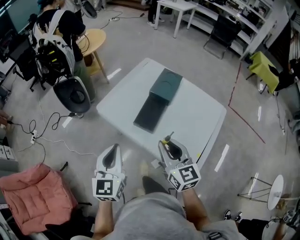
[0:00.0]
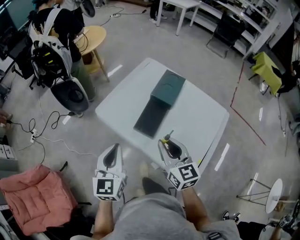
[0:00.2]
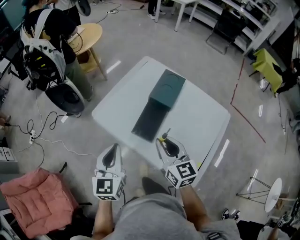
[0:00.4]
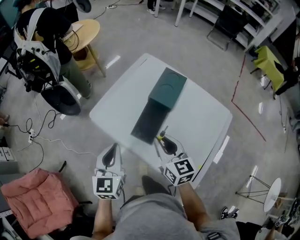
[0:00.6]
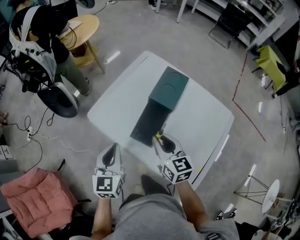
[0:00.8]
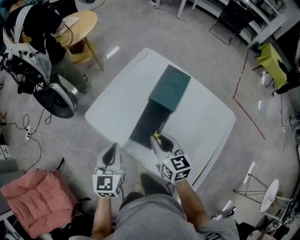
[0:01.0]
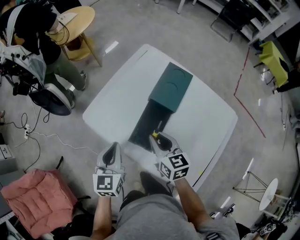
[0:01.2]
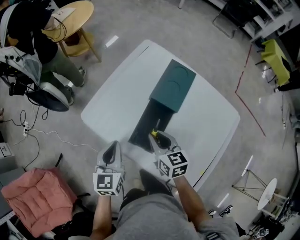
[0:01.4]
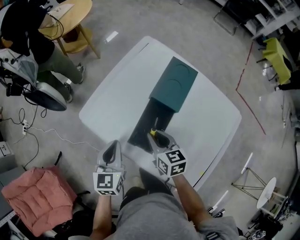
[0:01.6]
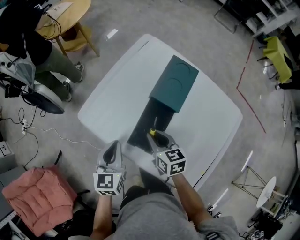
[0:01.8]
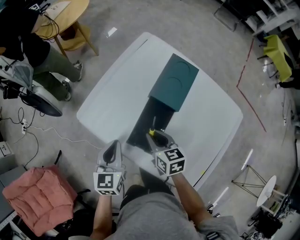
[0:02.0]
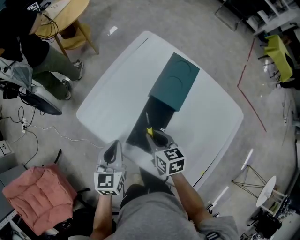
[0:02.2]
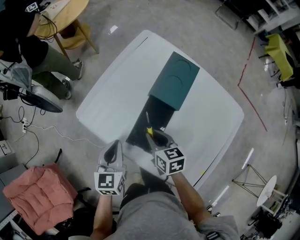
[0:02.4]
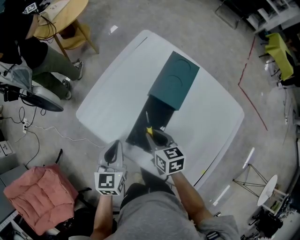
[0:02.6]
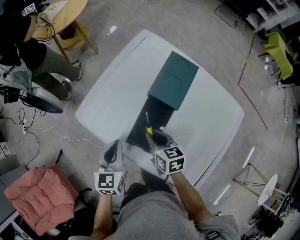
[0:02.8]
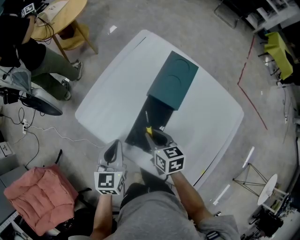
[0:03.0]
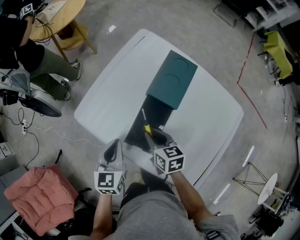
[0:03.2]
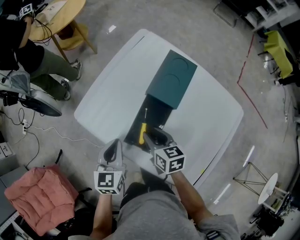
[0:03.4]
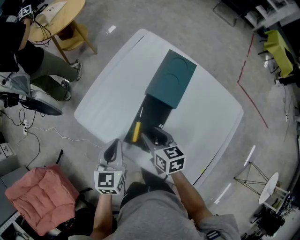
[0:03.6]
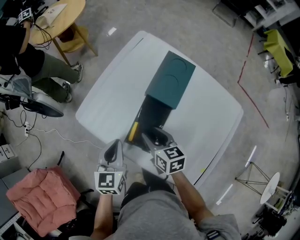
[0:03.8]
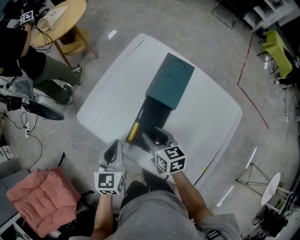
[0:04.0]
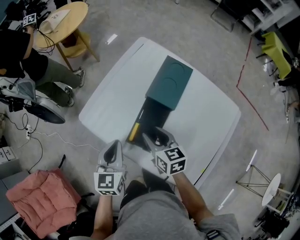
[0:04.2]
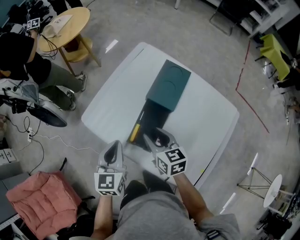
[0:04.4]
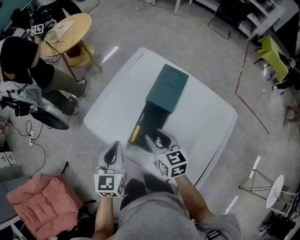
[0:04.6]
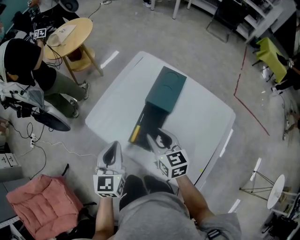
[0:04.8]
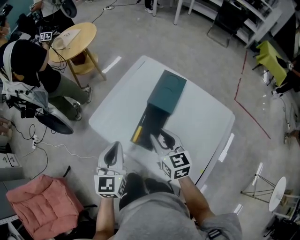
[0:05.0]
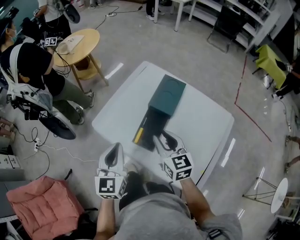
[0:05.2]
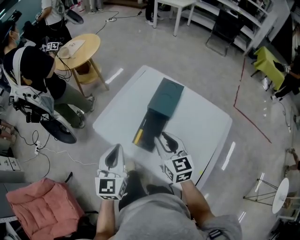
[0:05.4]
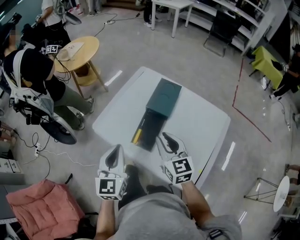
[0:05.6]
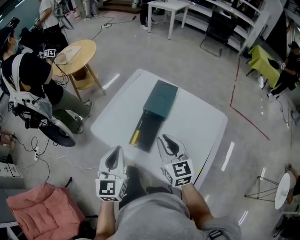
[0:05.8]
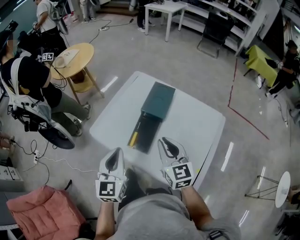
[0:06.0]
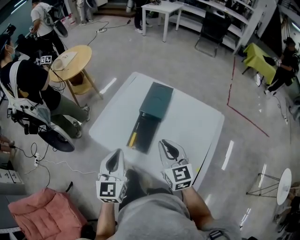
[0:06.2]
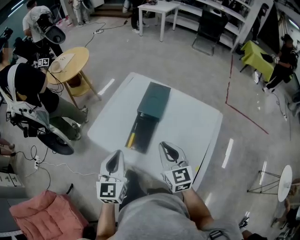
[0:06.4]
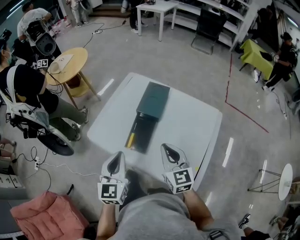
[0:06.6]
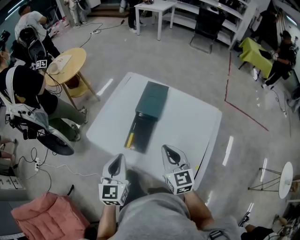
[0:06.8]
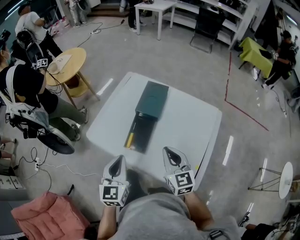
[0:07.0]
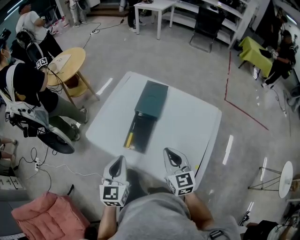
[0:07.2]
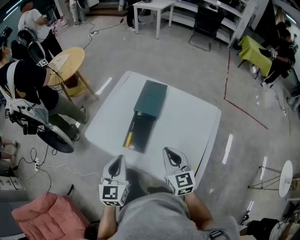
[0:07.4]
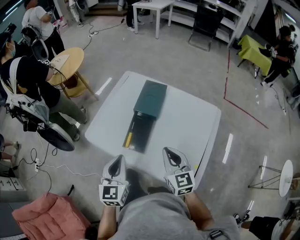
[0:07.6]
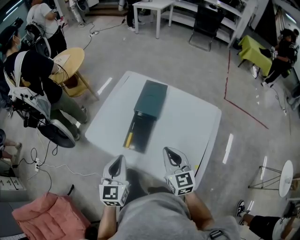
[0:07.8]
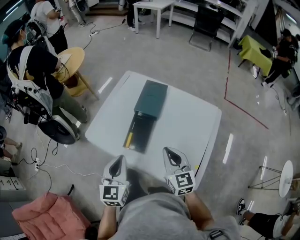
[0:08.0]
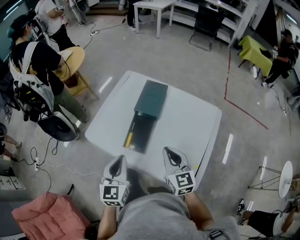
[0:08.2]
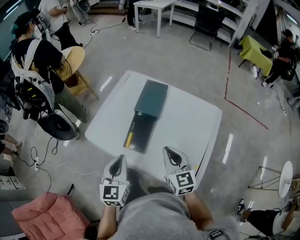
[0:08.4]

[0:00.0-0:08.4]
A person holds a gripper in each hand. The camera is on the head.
0:00.0 to 0:01.4: The grippers both shift forward and downward by roughly 25 cm. The right gripper turns by about 20 degrees.
0:01.4 to 0:02.8: The right gripper travels downward by roughly 5 cm.
0:02.8 to 0:04.2: The right gripper opens its fingers.
0:04.2 to 0:05.6: The grippers both shift upward and backward by some 15 cm. The right gripper turns by roughly 30 degrees, and closes its fingers.
0:05.6 to 0:07.0: The left gripper changes place by about 5 cm, while the right gripper goes roughly 10 cm backward and to the right, and closes.
0:07.0 to 0:08.4: The grippers move only a little.

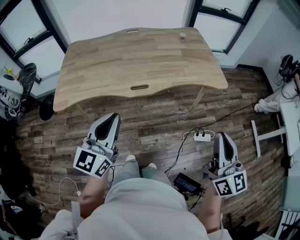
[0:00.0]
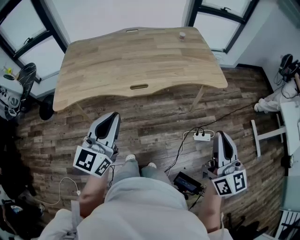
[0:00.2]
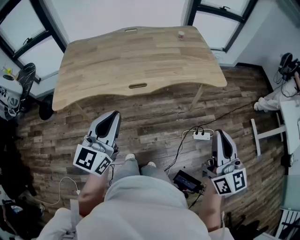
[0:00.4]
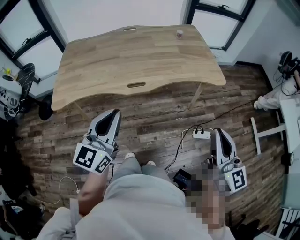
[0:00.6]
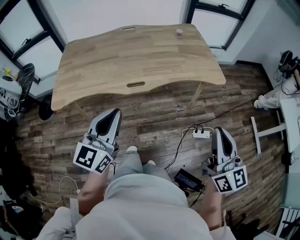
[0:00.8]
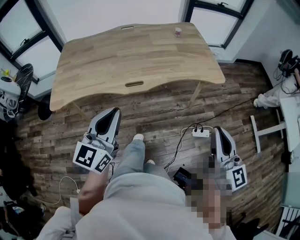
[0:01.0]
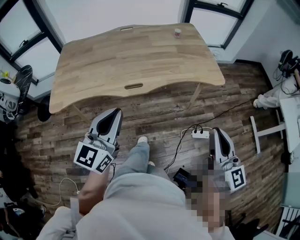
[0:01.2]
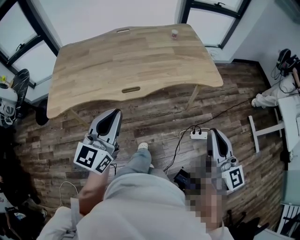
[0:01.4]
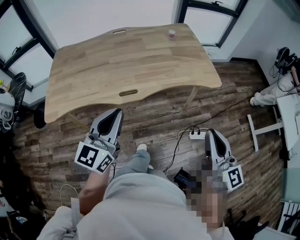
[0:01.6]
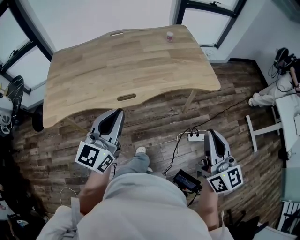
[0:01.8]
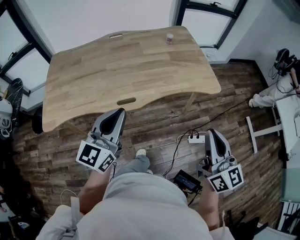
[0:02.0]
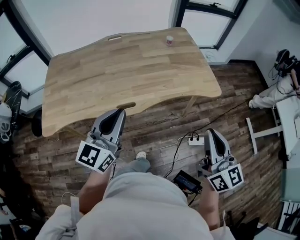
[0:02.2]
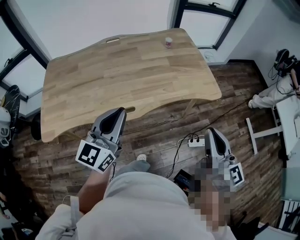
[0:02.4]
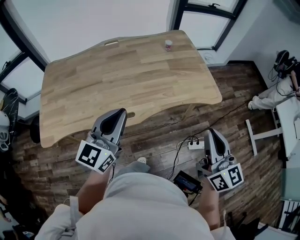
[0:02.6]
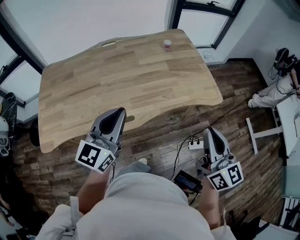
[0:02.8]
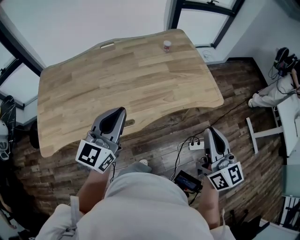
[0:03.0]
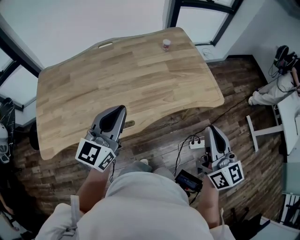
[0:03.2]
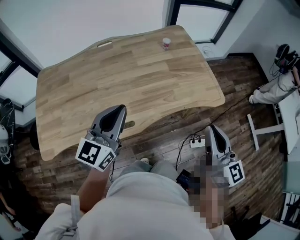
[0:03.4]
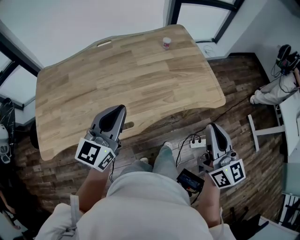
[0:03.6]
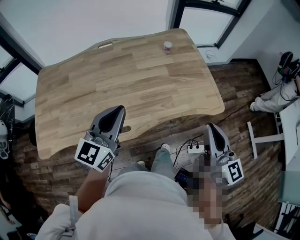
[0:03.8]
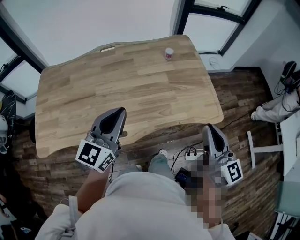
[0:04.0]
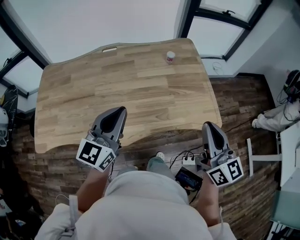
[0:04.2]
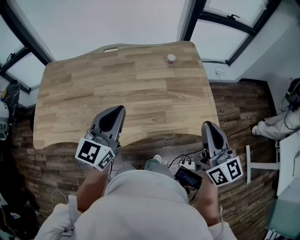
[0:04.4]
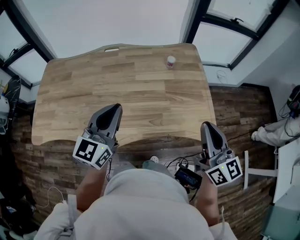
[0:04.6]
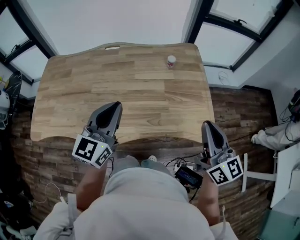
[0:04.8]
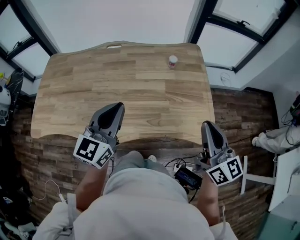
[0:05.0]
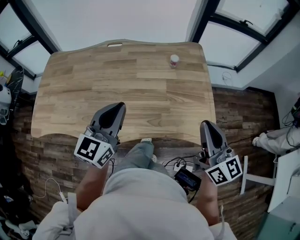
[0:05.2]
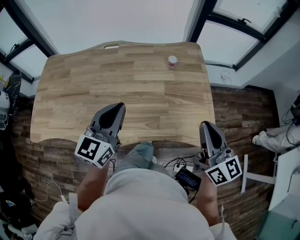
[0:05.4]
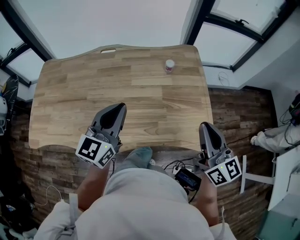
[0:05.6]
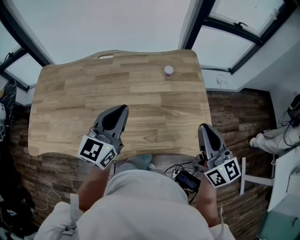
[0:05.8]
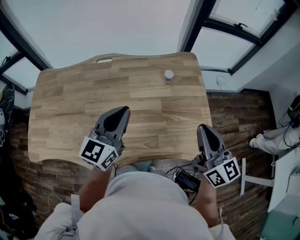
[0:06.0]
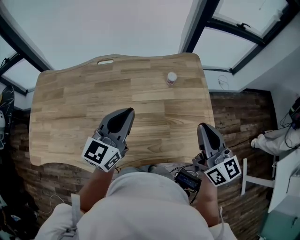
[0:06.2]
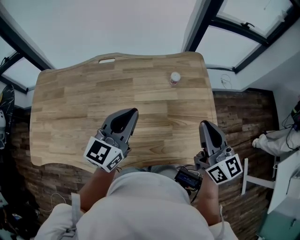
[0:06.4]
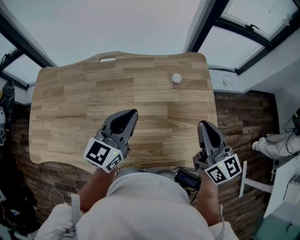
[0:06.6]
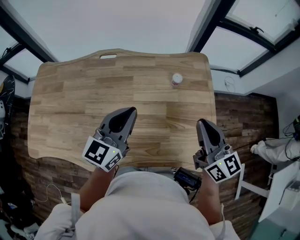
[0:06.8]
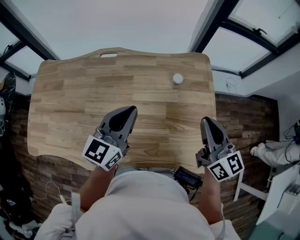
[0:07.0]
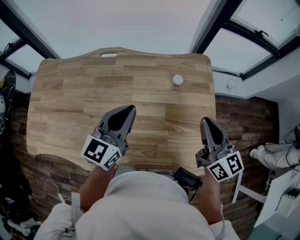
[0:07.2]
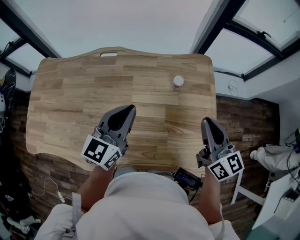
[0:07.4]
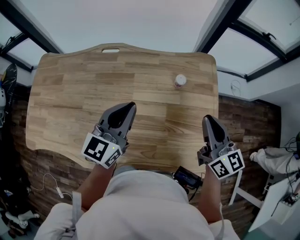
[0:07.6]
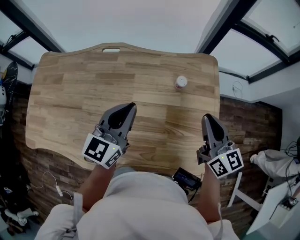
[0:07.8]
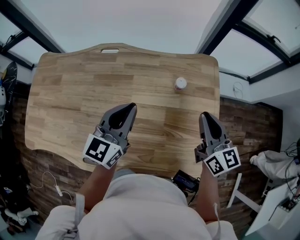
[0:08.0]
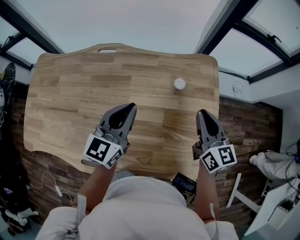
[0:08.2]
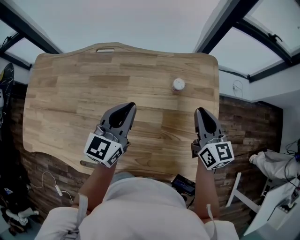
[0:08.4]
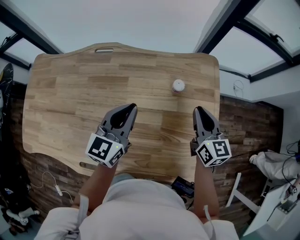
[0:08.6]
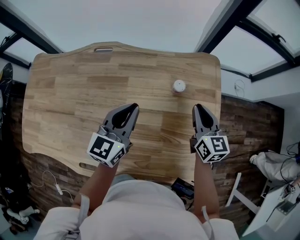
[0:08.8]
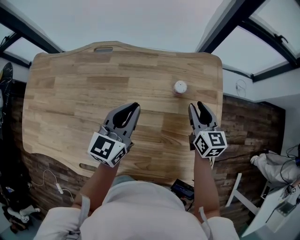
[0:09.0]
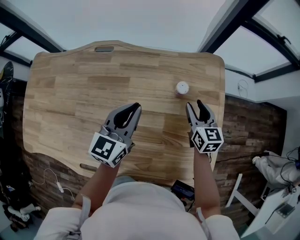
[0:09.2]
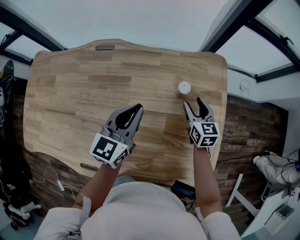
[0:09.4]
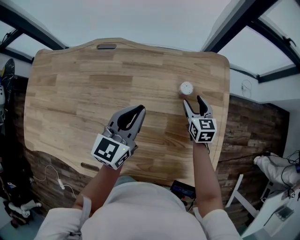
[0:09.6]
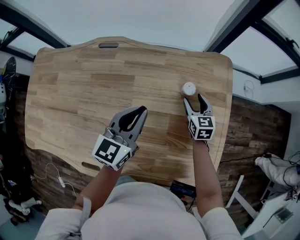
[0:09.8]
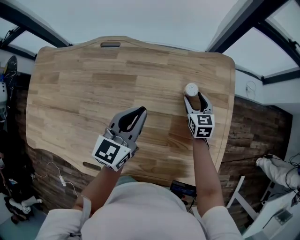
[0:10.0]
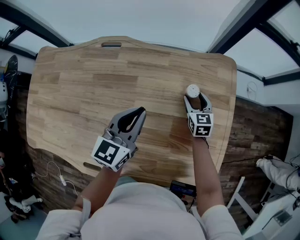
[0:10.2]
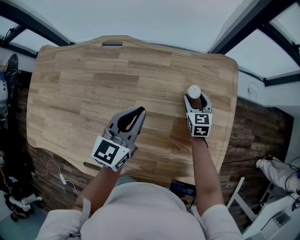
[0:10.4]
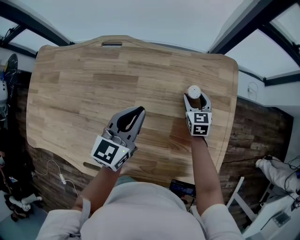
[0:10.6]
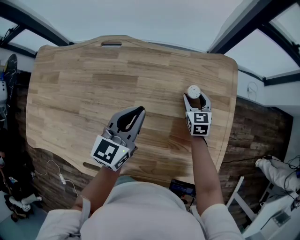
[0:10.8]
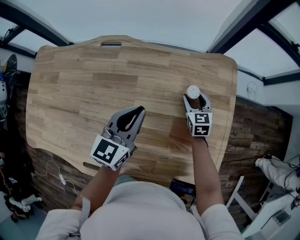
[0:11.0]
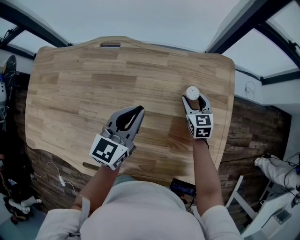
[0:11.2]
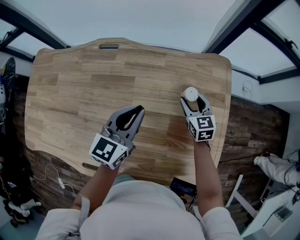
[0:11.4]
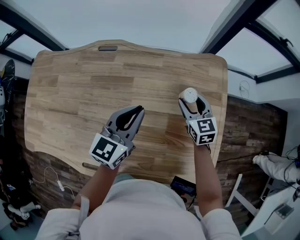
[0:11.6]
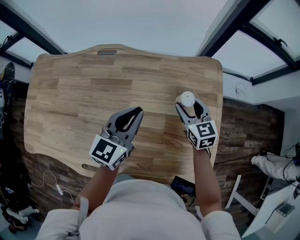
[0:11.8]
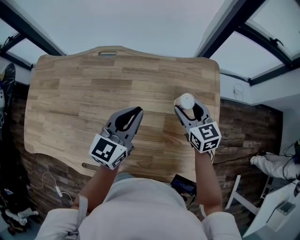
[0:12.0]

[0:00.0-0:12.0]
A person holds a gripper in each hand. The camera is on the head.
0:00.0 to 0:01.6: Both grippers move forward, roughly 5 cm.
0:01.6 to 0:03.0: Both grippers travel together forward, some 20 cm.
0:03.0 to 0:04.4: Both grippers travel together forward and to the right, about 15 cm.
0:04.4 to 0:06.0: The two grippers go about 15 cm forward.
0:06.0 to 0:07.6: The left gripper shifts some 10 cm forward. Meanwhile the right gripper shifts about 15 cm forward.
0:07.6 to 0:09.0: The left gripper shifts some 10 cm downward and forward; the right gripper travels downward and forward by roughly 20 cm, and opens its fingers.
0:09.0 to 0:10.4: The right gripper travels downward and forward by approximately 15 cm, and opens.
0:10.4 to 0:12.0: The right gripper travels upward and backward by about 20 cm. Meanwhile the left gripper heads upward, covering some 5 cm.

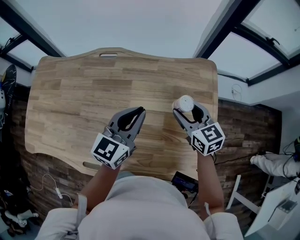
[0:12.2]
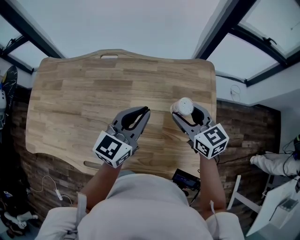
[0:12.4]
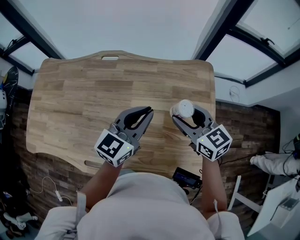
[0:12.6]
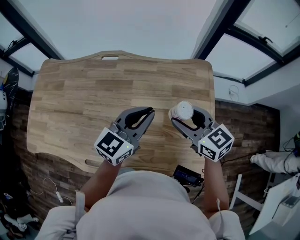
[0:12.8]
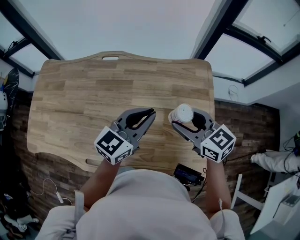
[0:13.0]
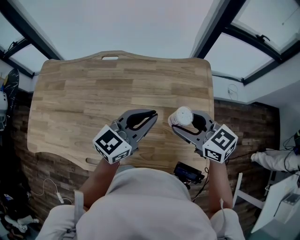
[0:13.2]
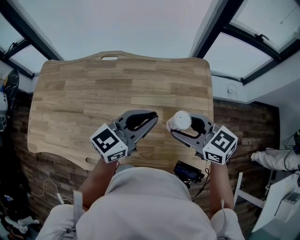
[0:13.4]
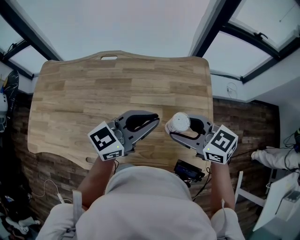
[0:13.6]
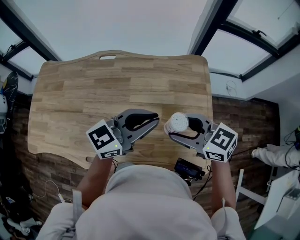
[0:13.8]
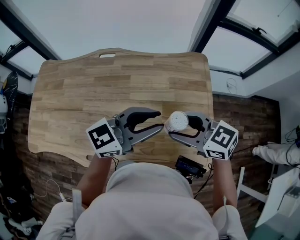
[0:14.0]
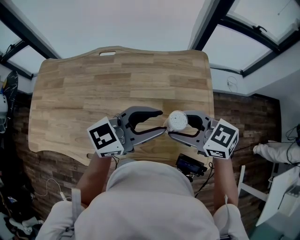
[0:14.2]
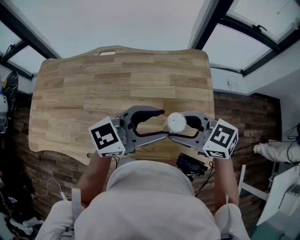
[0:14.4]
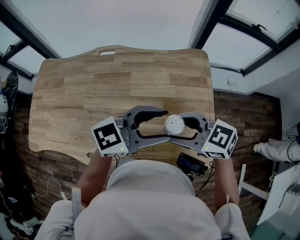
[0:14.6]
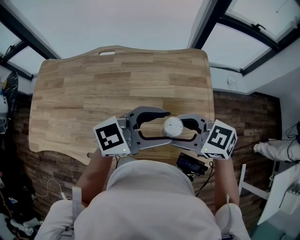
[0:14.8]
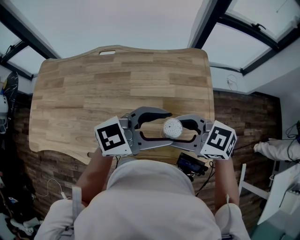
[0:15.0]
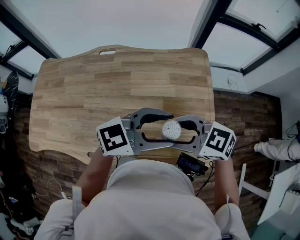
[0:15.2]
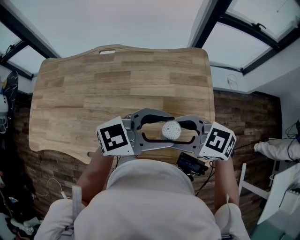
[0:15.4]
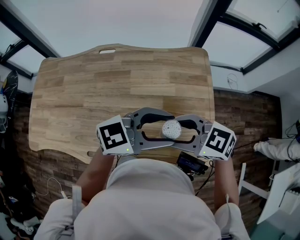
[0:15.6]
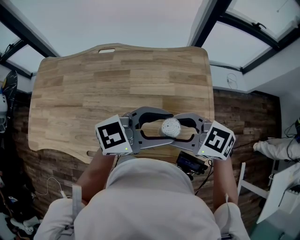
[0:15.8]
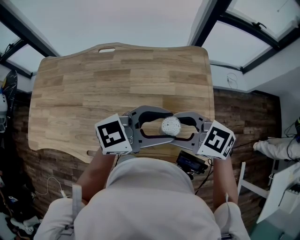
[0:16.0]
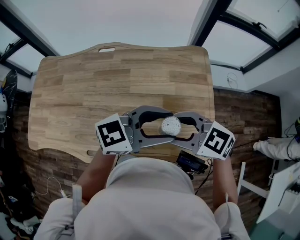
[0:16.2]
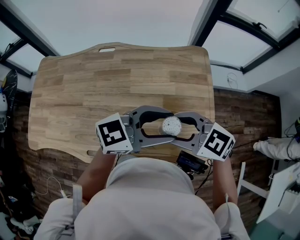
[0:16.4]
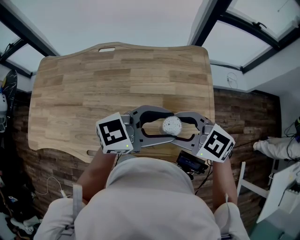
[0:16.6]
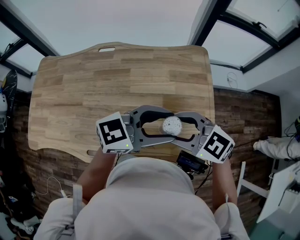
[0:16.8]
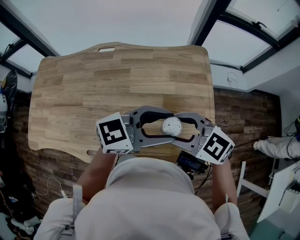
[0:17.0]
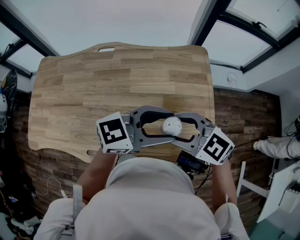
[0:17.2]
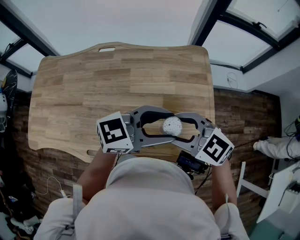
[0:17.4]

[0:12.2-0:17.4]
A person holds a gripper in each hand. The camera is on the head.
0:12.2 to 0:14.0: The left gripper shifts by some 15 cm, turns by about 40 degrees, and opens its fingers. Meanwhile the right gripper moves roughly 20 cm, and rotates roughly 30 degrees.
0:14.0 to 0:15.6: The left gripper shifts by about 5 cm, and opens its fingers, while the right gripper shifts by about 5 cm.
0:15.6 to 0:17.4: The grippers stay close to where they were, moving slightly.
